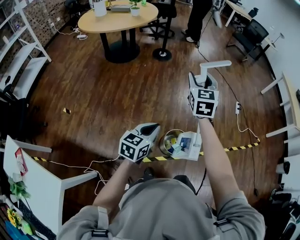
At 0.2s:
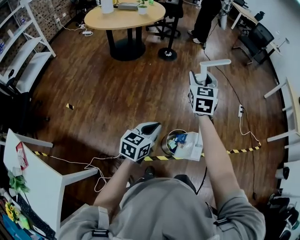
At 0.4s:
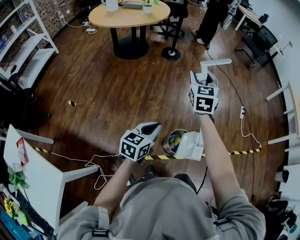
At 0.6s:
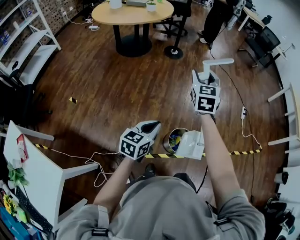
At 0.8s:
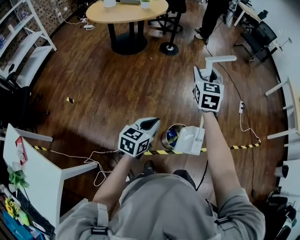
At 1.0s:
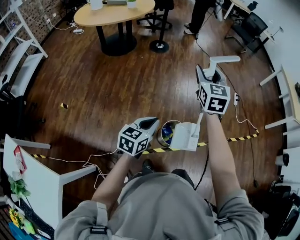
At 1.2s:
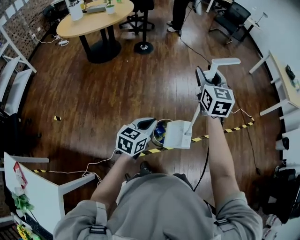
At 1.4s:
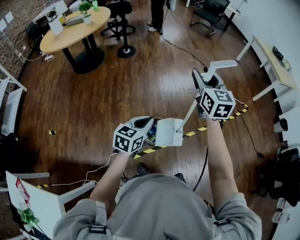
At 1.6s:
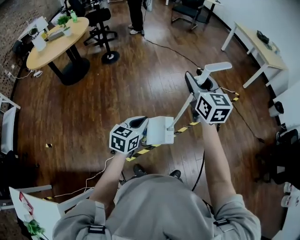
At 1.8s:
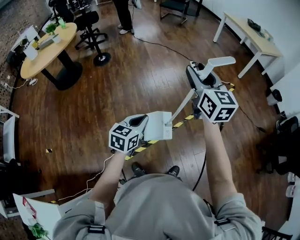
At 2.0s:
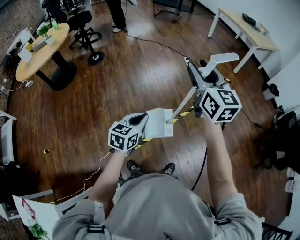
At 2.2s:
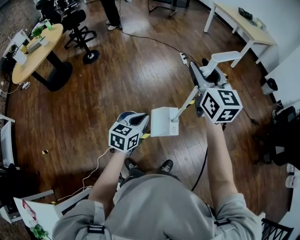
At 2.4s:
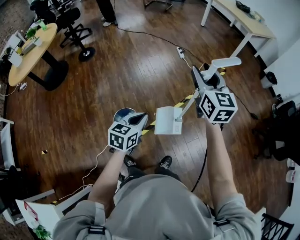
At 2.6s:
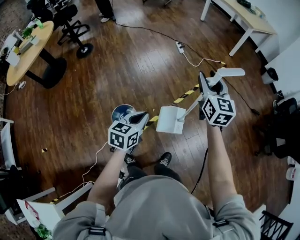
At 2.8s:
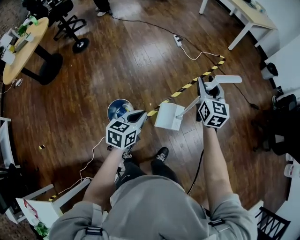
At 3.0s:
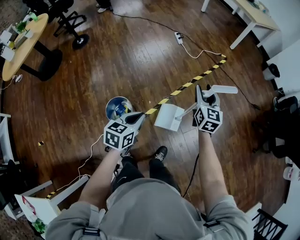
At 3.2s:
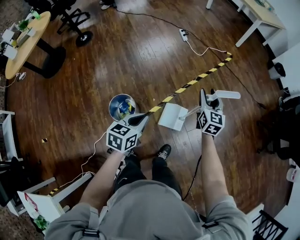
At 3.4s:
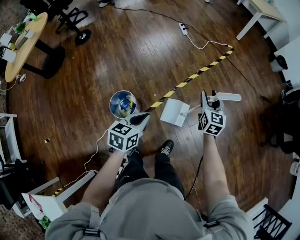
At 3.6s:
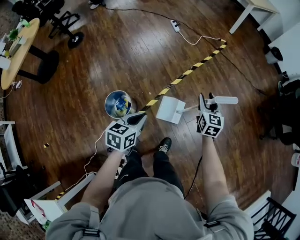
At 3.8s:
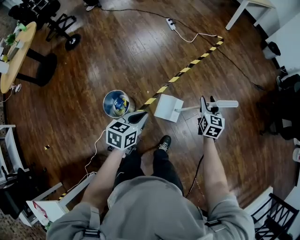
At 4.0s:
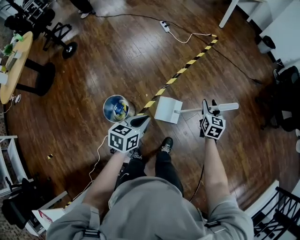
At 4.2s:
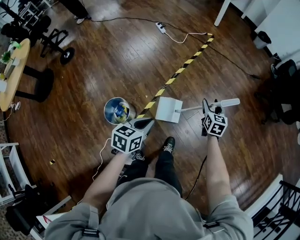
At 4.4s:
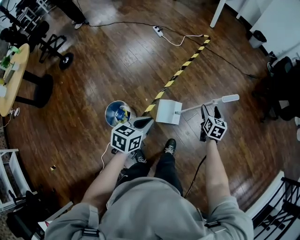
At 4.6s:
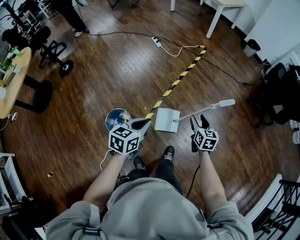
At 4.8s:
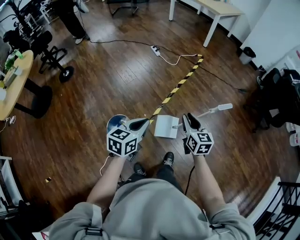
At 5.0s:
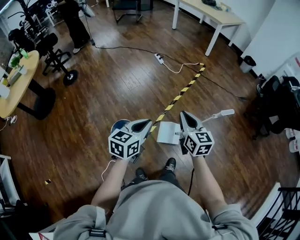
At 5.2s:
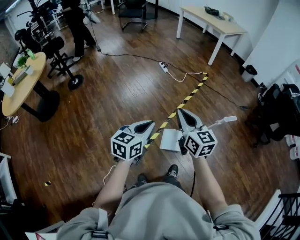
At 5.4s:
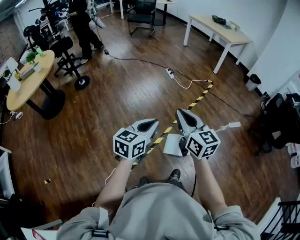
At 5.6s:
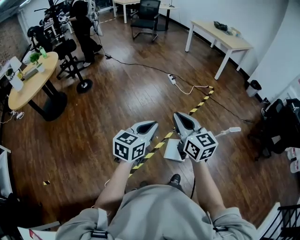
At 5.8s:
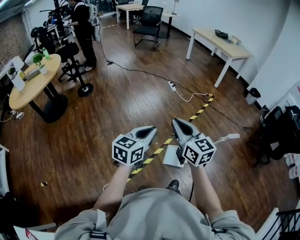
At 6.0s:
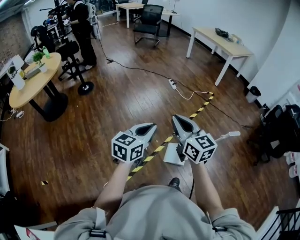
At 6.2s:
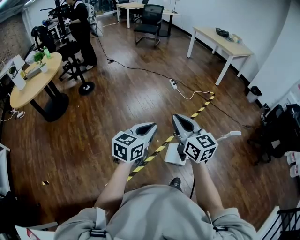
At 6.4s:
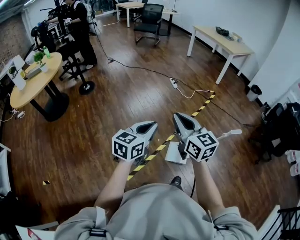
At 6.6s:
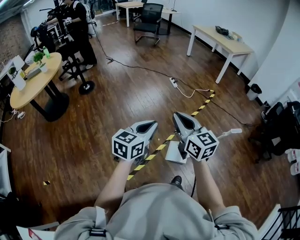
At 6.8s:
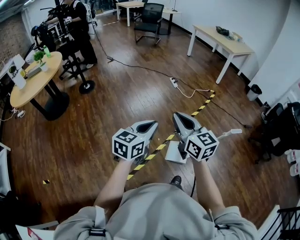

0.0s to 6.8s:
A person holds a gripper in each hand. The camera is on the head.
0.0s to 1.4s: The left gripper heads to the right, covering some 15 cm. Meanwhile the right gripper heads to the right, covering roughly 25 cm.
1.4s to 2.8s: Both grippers travel together to the right, about 40 cm. The right gripper turns by approximately 30 degrees.
2.8s to 4.0s: The right gripper shifts some 25 cm downward and to the right, and changes its angle by approximately 30 degrees; the left gripper shifts approximately 10 cm to the right.
4.0s to 5.4s: The right gripper travels to the left, upward and backward by approximately 50 cm, turns by approximately 40 degrees, and closes its fingers; the left gripper heads upward and to the left, covering approximately 25 cm, and swivels approximately 30 degrees.
5.4s to 6.8s: The left gripper ends up roughly 5 cm from where it was. Meanwhile the right gripper shifts some 5 cm to the left.

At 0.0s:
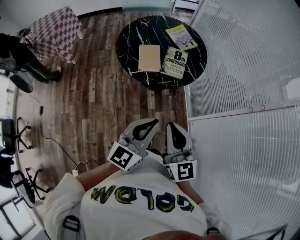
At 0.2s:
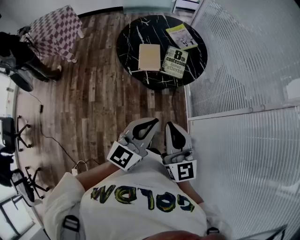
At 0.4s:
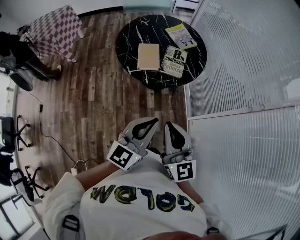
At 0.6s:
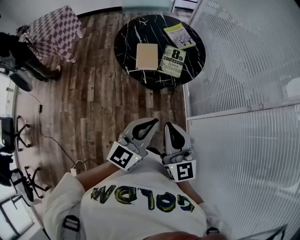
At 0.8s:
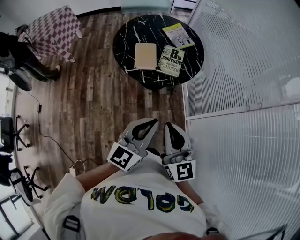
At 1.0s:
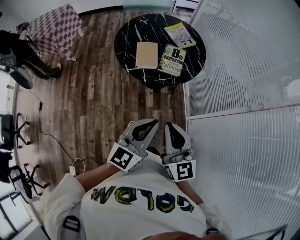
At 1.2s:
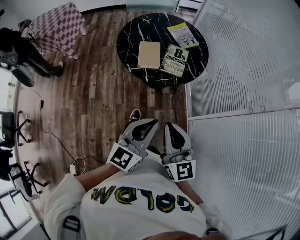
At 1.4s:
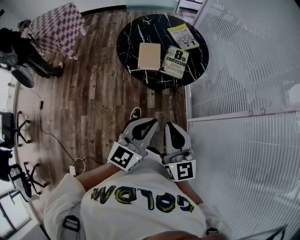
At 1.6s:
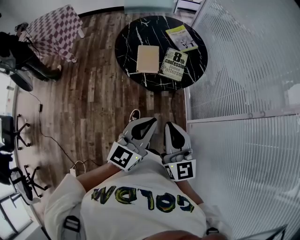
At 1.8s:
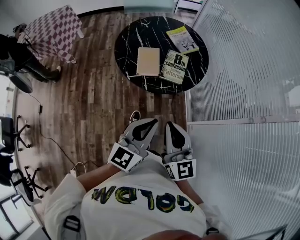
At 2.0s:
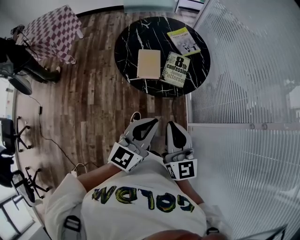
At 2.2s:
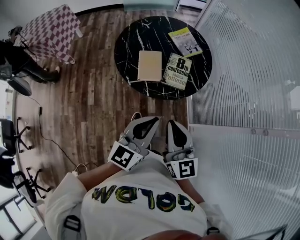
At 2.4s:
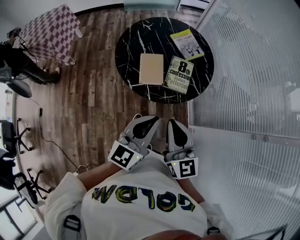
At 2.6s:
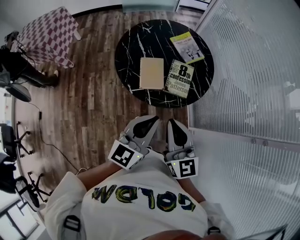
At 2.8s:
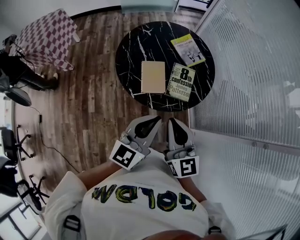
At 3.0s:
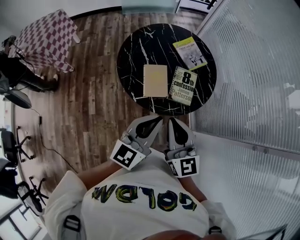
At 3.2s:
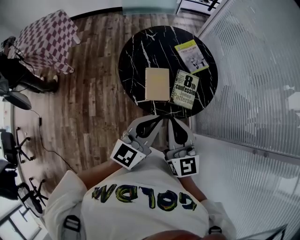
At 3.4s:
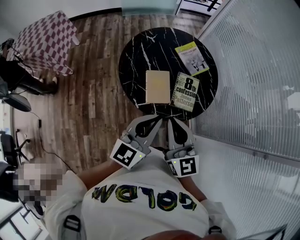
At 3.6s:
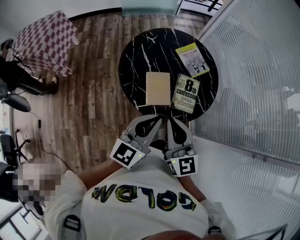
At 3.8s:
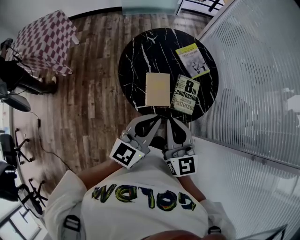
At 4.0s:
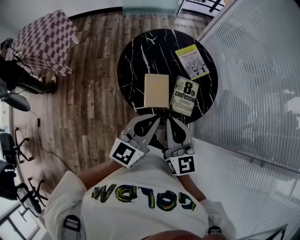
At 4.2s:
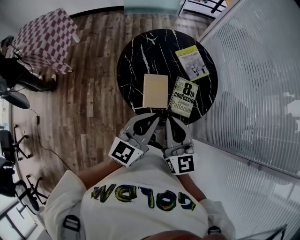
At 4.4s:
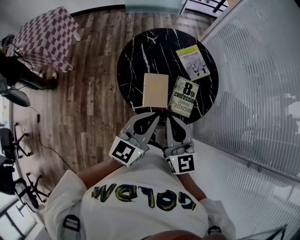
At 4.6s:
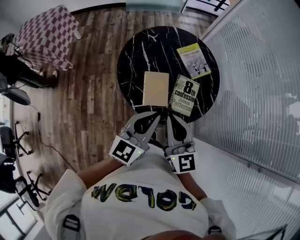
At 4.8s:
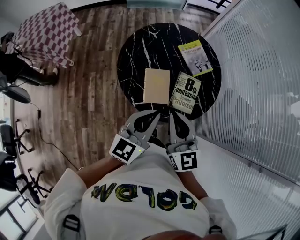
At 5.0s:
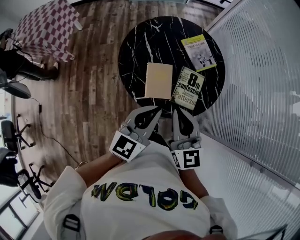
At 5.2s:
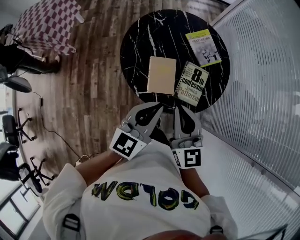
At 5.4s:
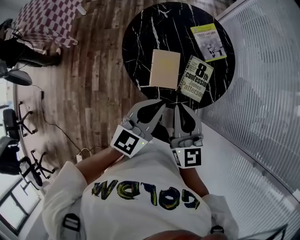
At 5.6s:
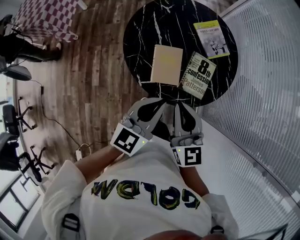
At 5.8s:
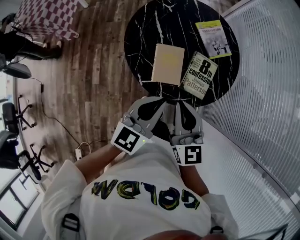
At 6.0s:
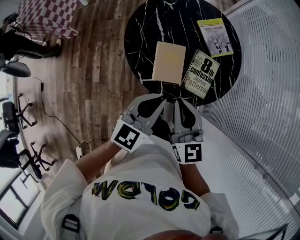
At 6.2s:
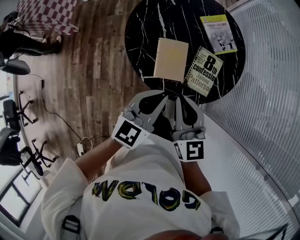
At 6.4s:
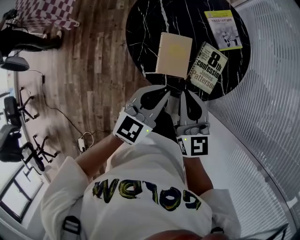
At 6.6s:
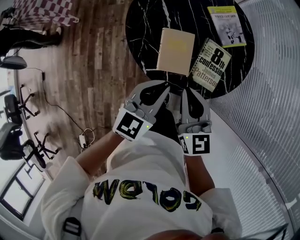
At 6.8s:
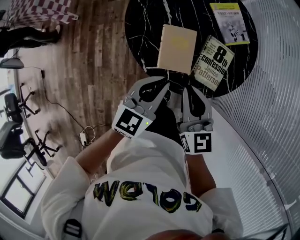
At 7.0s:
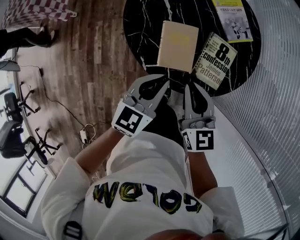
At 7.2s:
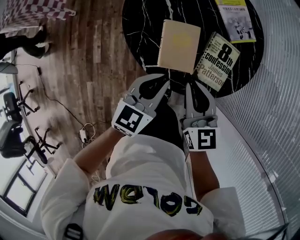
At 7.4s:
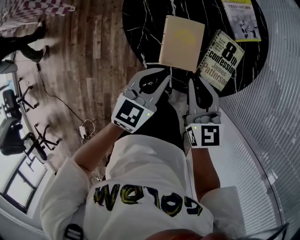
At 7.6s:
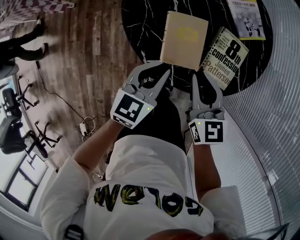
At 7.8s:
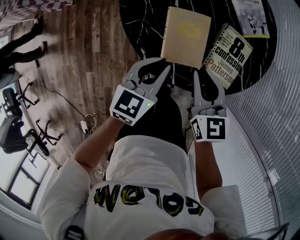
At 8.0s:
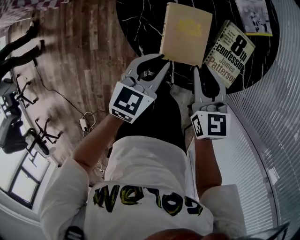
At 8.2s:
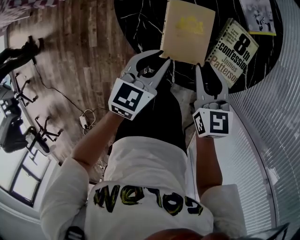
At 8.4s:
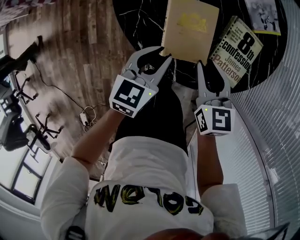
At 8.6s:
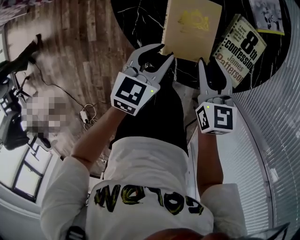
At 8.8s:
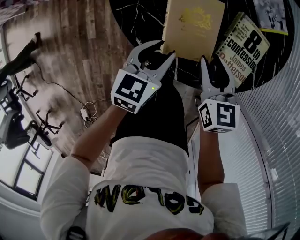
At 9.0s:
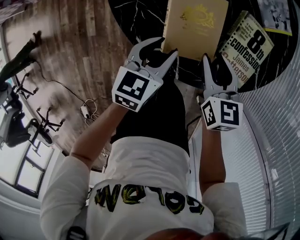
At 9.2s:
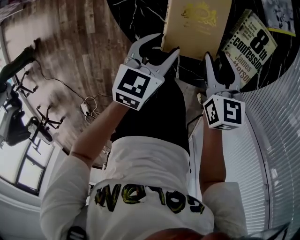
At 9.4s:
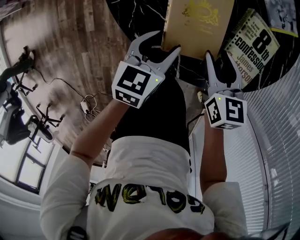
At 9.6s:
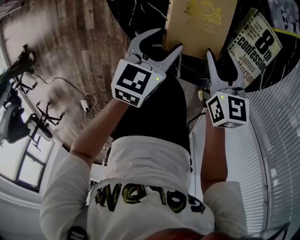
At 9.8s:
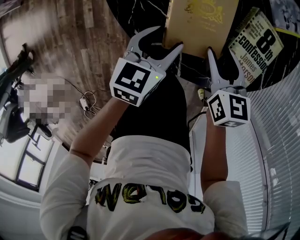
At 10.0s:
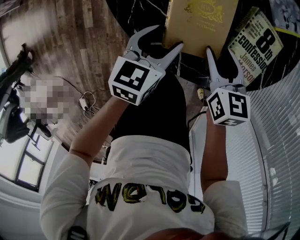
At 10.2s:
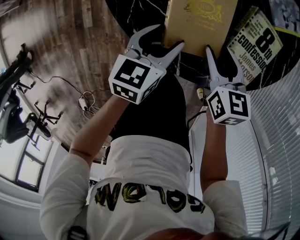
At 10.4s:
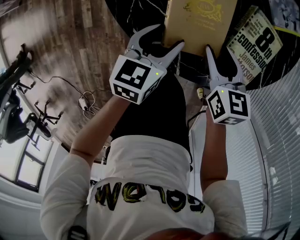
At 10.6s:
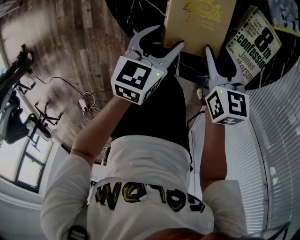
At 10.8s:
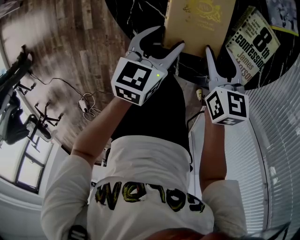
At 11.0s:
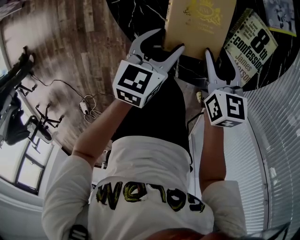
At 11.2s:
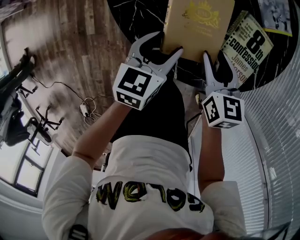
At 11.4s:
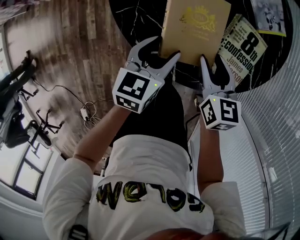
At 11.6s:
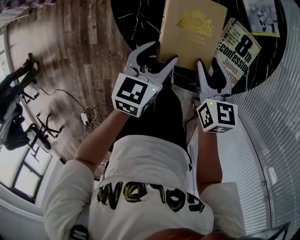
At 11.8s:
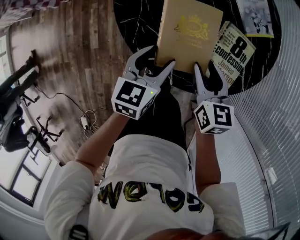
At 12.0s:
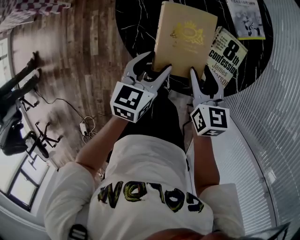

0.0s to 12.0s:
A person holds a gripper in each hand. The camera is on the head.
0.0s to 1.6s: The grippers stay close to where they were, moving slightly.
1.6s to 3.0s: The two grippers go about 20 cm forward and to the left.
3.0s to 4.4s: The two grippers go about 10 cm forward.
4.4s to 6.0s: The grippers both shift downward by about 5 cm.
6.0s to 7.6s: The left gripper is displaced downward by some 15 cm. Meanwhile the right gripper heads downward and forward, covering about 15 cm.
7.6s to 9.0s: Both grippers move downward, some 10 cm. The right gripper opens up. The left gripper opens its fingers.
9.0s to 10.4s: The grippers make only small movements.
10.4s to 12.0s: The two grippers go approximately 10 cm upward.

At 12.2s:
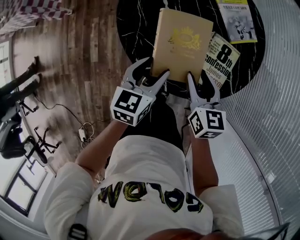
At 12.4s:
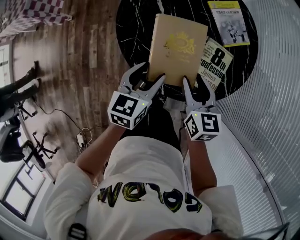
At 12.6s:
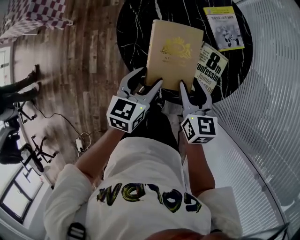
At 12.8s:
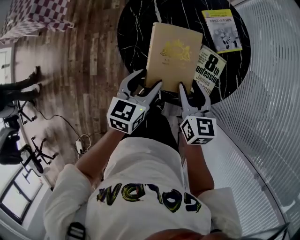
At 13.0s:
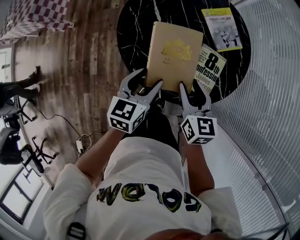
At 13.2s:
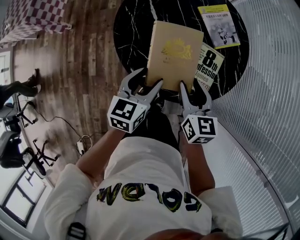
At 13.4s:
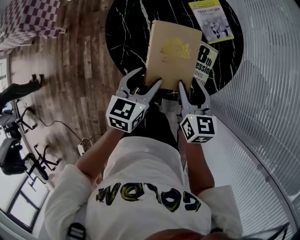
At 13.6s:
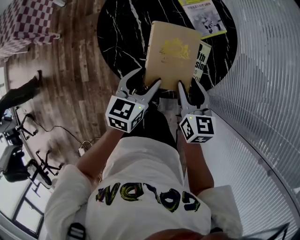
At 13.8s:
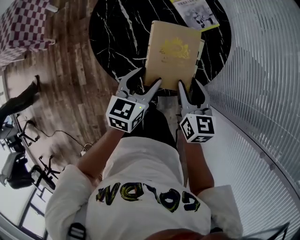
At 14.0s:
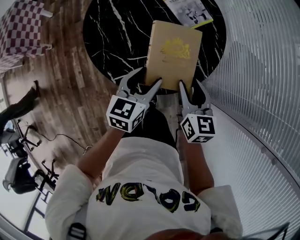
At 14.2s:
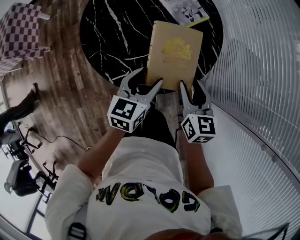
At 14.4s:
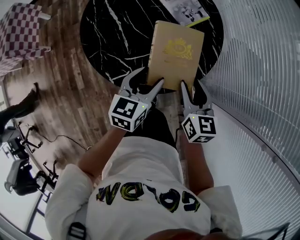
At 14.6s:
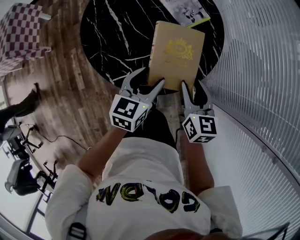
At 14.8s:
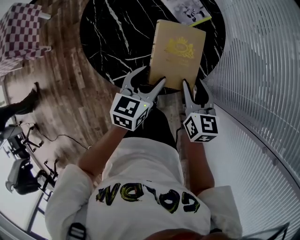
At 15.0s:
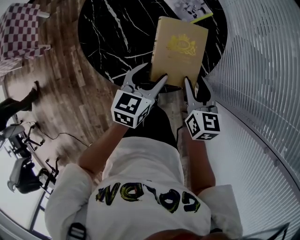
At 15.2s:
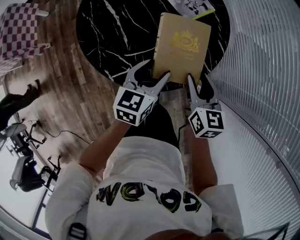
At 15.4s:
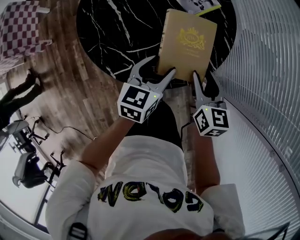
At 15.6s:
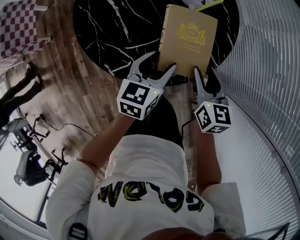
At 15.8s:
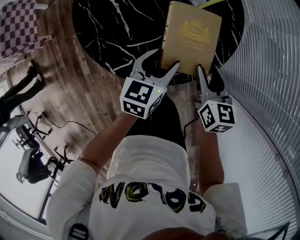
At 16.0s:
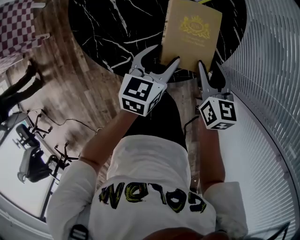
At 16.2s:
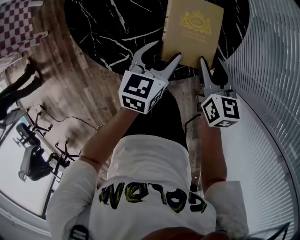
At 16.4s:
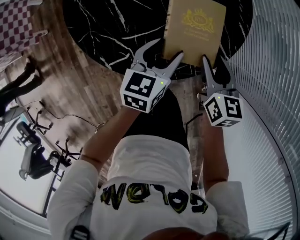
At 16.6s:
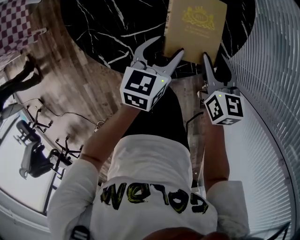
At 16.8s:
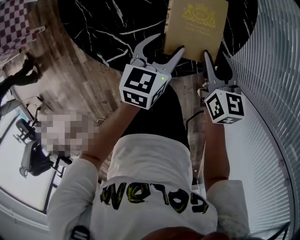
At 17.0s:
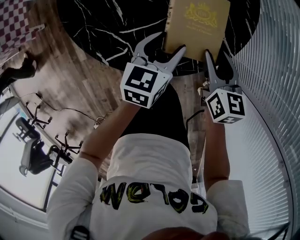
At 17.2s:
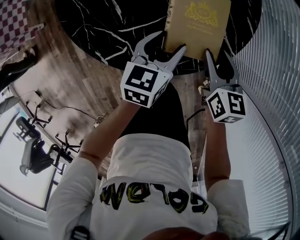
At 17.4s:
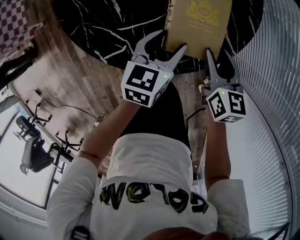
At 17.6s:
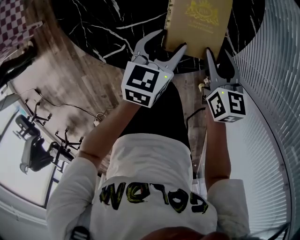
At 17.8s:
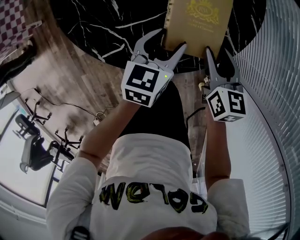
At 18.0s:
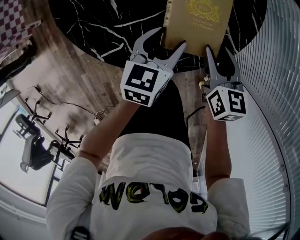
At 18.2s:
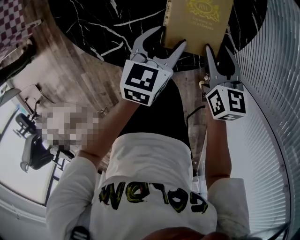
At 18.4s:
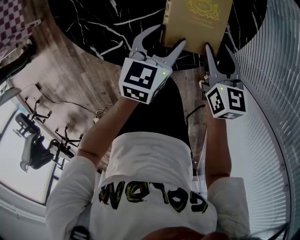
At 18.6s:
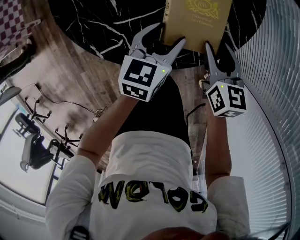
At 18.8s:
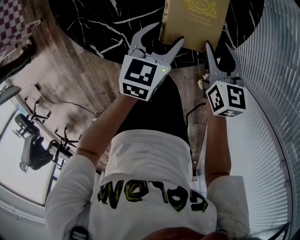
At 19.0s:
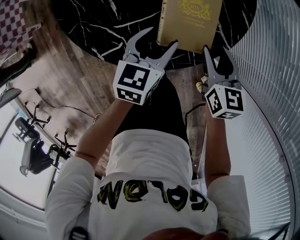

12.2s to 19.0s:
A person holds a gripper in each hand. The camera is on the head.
12.2s to 13.6s: The right gripper is displaced to the right and upward by about 10 cm, while the left gripper is displaced to the right by some 5 cm.
13.6s to 15.0s: The grippers both shift to the right by some 10 cm.
15.0s to 16.2s: The grippers both shift downward by some 10 cm.
16.2s to 17.6s: The right gripper moves approximately 5 cm, while the left gripper changes place by approximately 5 cm.
17.6s to 19.0s: There are only small adjustments of the grippers.
